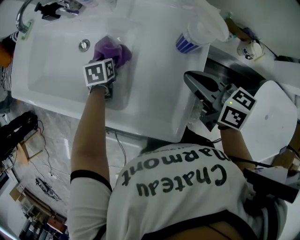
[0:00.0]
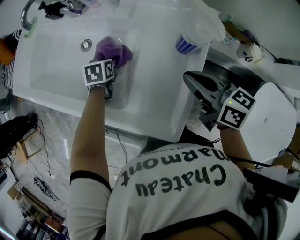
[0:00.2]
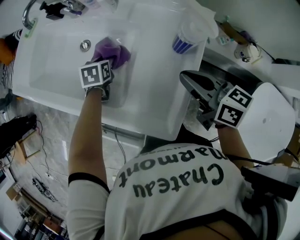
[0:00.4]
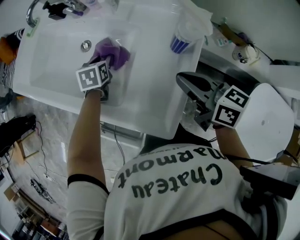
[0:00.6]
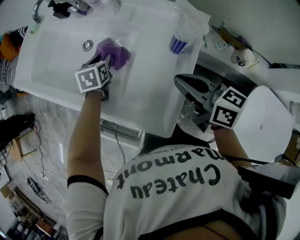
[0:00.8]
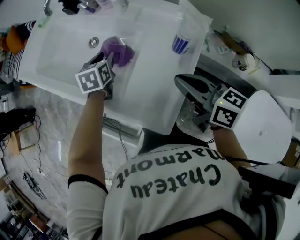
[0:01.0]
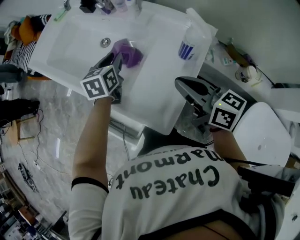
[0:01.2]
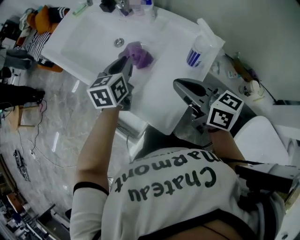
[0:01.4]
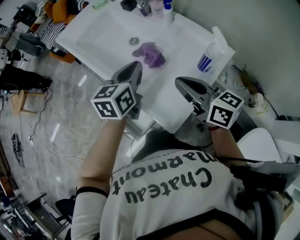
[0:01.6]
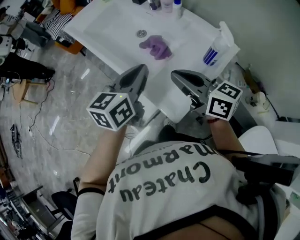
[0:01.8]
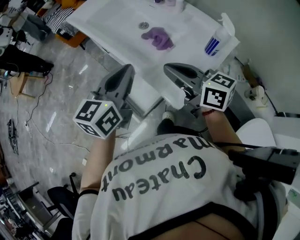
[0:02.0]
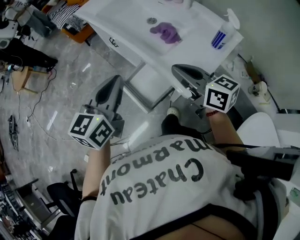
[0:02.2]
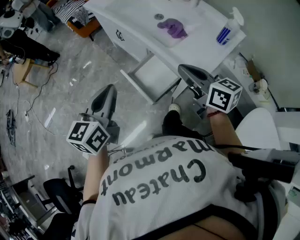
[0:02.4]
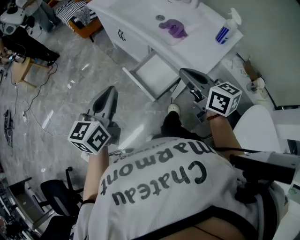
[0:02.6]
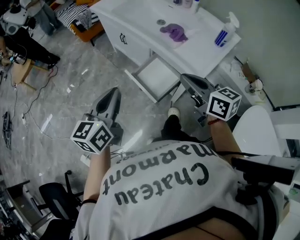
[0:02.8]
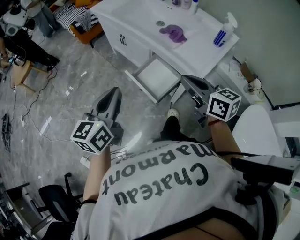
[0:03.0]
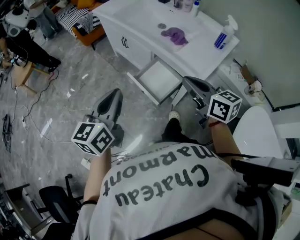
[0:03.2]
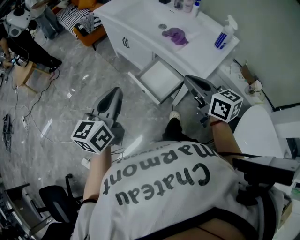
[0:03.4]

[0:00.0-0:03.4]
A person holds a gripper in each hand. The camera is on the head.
0.0 to 1.6 s: The right gripper moves upward and to the left, about 15 cm, and changes its angle by about 30 degrees. The left gripper moves upward and backward, roughly 30 cm, tilts its fingers some 40 degrees upward, and closes its fingers.
1.6 to 3.4 s: The right gripper shifts about 25 cm backward and to the left. The left gripper shifts roughly 40 cm to the left and backward.

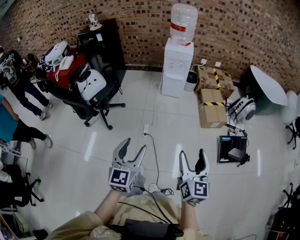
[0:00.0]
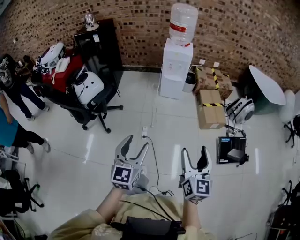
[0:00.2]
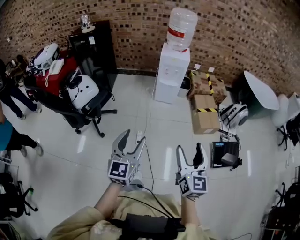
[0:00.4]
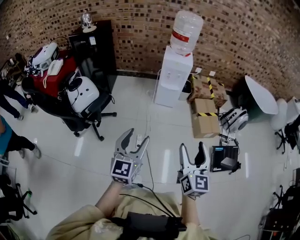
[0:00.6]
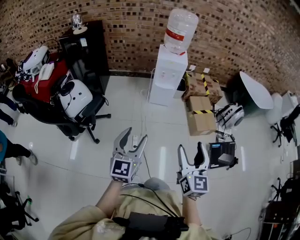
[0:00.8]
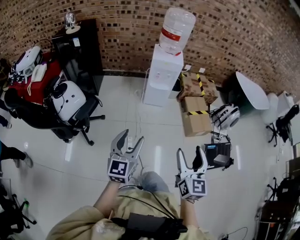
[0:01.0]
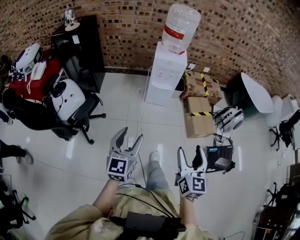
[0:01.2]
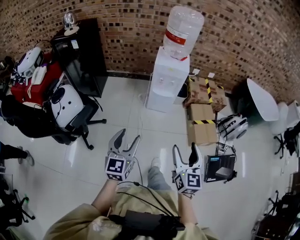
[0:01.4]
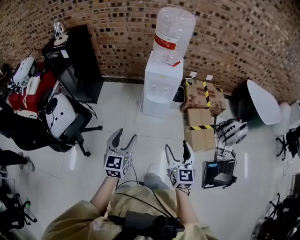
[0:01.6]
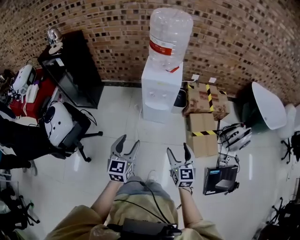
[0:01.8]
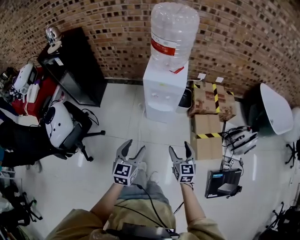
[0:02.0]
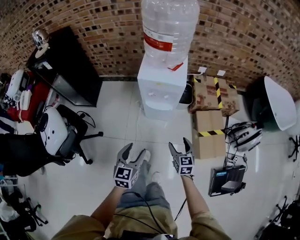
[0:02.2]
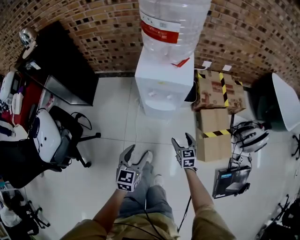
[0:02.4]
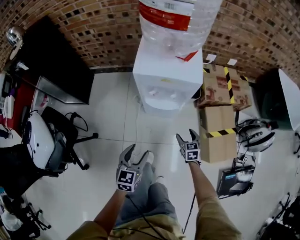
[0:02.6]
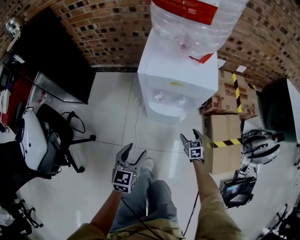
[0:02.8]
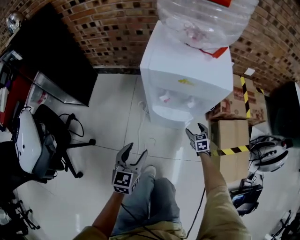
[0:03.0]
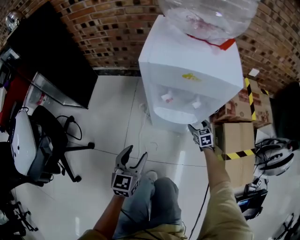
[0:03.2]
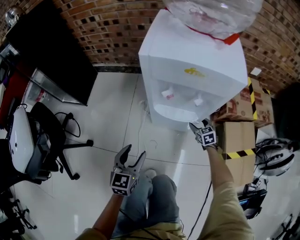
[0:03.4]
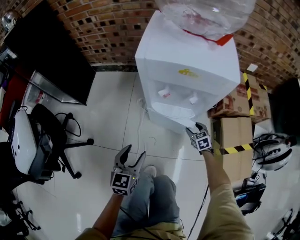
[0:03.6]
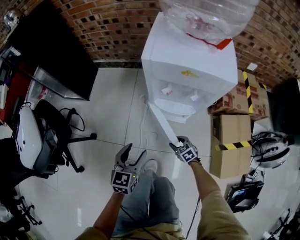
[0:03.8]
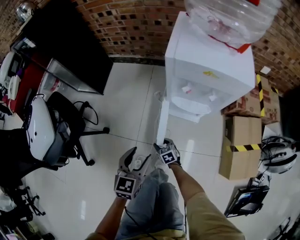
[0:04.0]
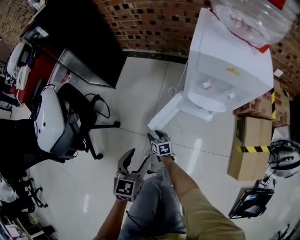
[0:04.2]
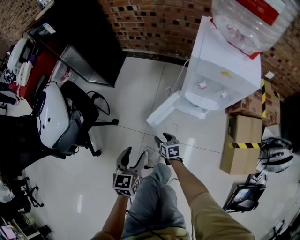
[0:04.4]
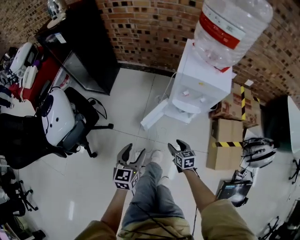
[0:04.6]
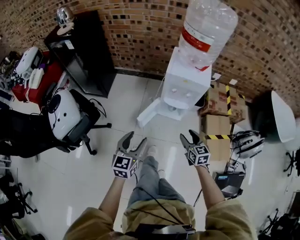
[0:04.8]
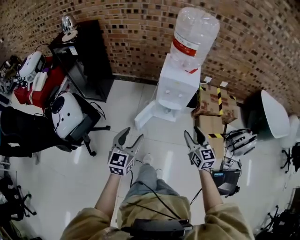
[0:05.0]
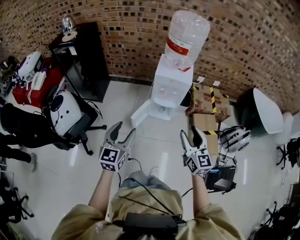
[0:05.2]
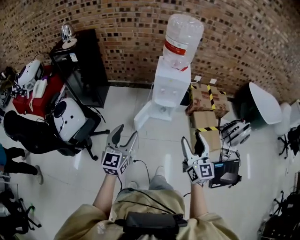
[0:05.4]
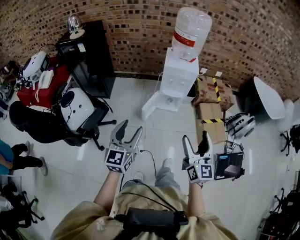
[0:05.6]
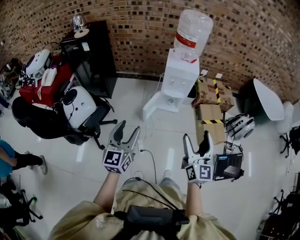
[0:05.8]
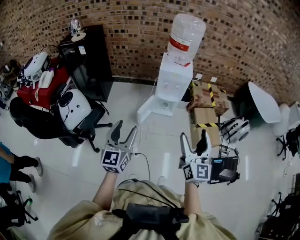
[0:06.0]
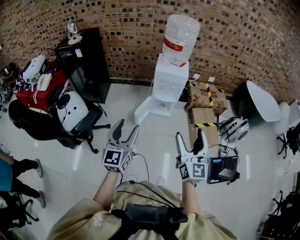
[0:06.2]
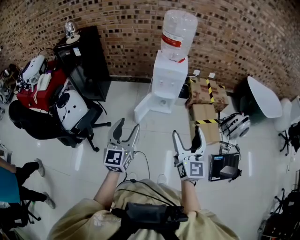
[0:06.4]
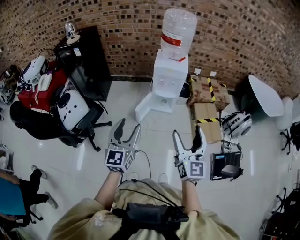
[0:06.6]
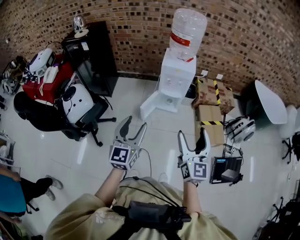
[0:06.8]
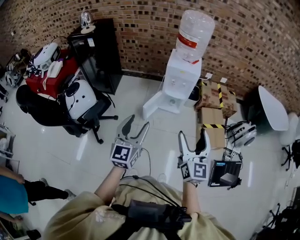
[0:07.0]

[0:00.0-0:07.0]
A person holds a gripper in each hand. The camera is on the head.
0.0 to 1.4 s: Both grippers move forward, approximately 35 cm.
1.4 to 2.8 s: Both grippers travel together downward and forward, about 70 cm. The right gripper tilts its fingers approximately 40 degrees downward.
2.8 to 4.2 s: The right gripper ends up roughly 40 cm from where it was, and changes its angle by about 30 degrees, while the left gripper travels downward and back again, some 10 cm each way.
4.2 to 5.6 s: The left gripper is displaced upward by approximately 50 cm, and changes its angle by about 30 degrees. Meanwhile the right gripper goes some 80 cm upward, points its fingers about 40 degrees further upward, and opens.
5.6 to 7.0 s: The left gripper goes roughly 5 cm to the right.

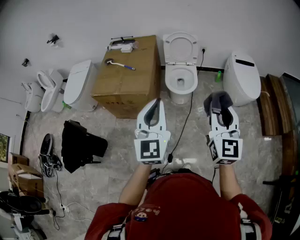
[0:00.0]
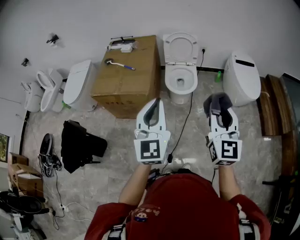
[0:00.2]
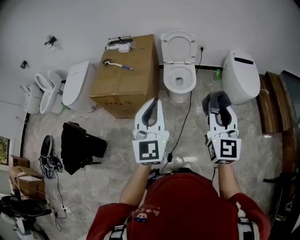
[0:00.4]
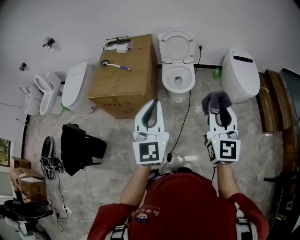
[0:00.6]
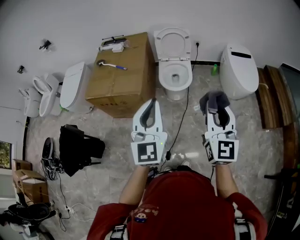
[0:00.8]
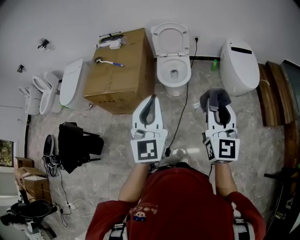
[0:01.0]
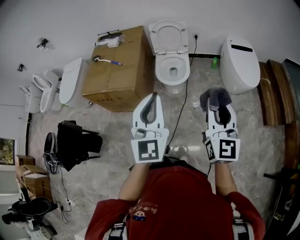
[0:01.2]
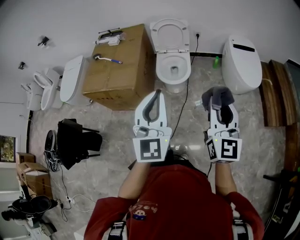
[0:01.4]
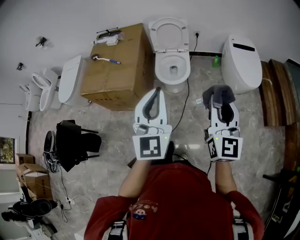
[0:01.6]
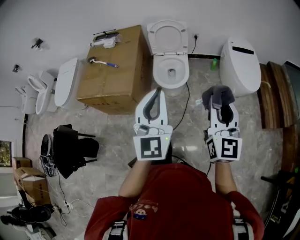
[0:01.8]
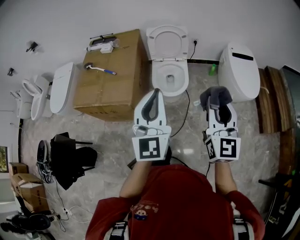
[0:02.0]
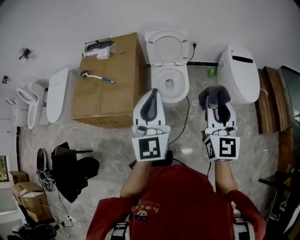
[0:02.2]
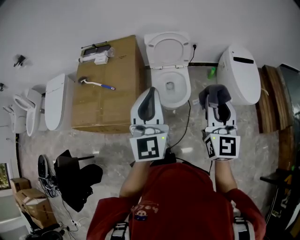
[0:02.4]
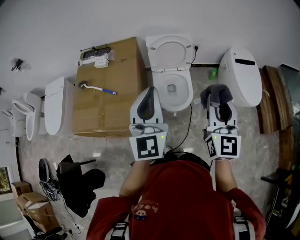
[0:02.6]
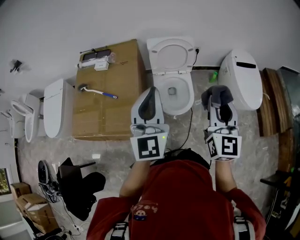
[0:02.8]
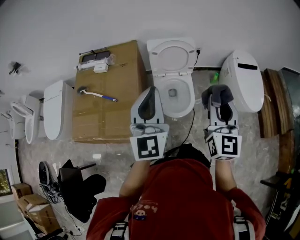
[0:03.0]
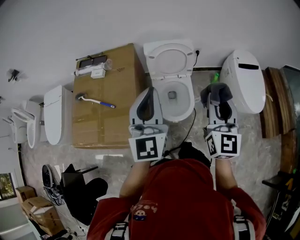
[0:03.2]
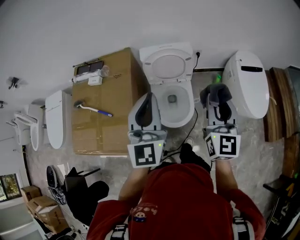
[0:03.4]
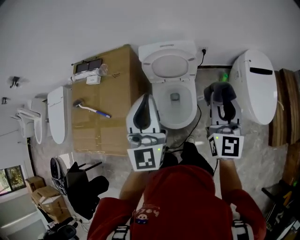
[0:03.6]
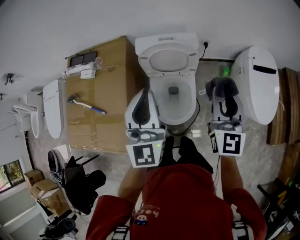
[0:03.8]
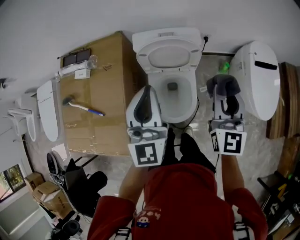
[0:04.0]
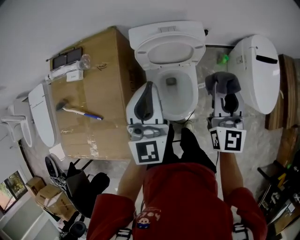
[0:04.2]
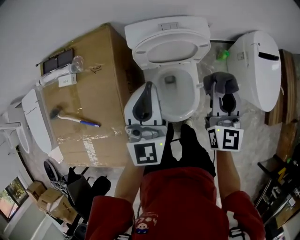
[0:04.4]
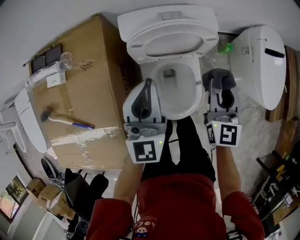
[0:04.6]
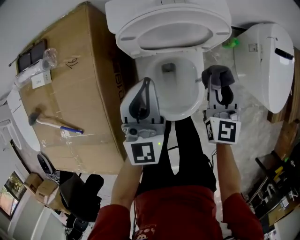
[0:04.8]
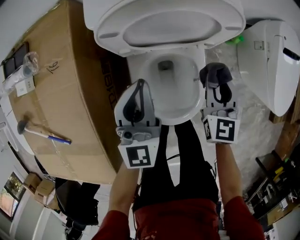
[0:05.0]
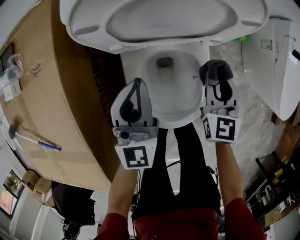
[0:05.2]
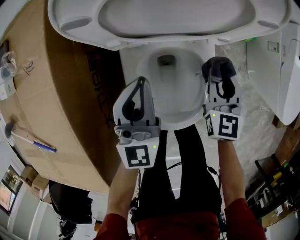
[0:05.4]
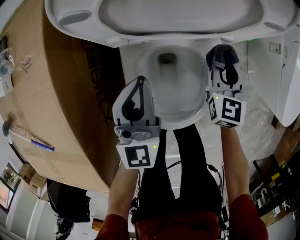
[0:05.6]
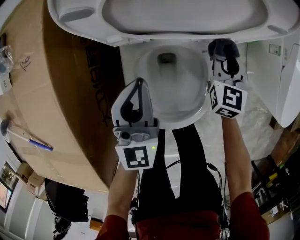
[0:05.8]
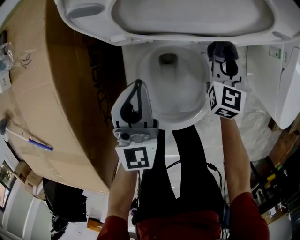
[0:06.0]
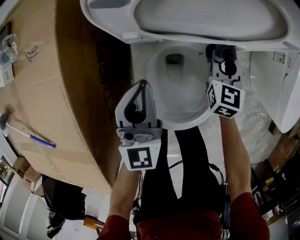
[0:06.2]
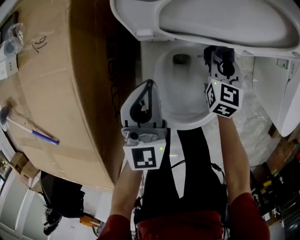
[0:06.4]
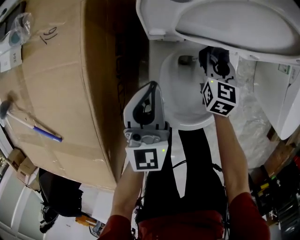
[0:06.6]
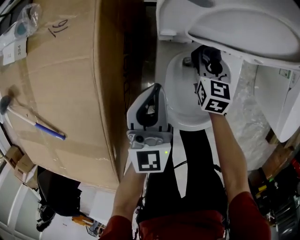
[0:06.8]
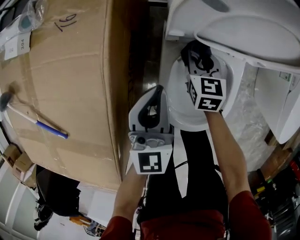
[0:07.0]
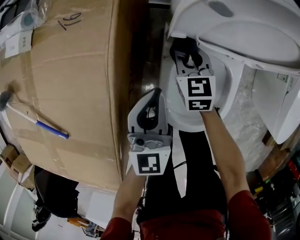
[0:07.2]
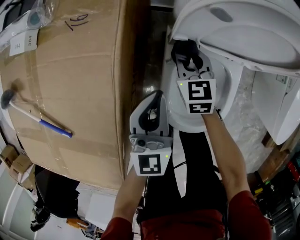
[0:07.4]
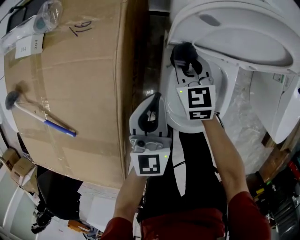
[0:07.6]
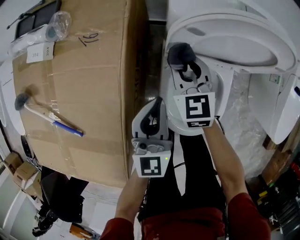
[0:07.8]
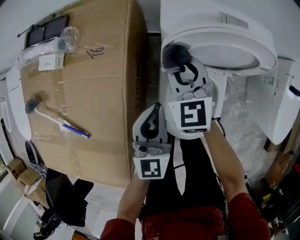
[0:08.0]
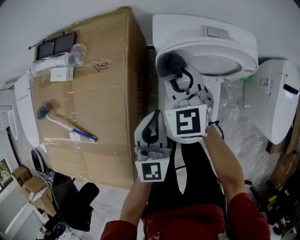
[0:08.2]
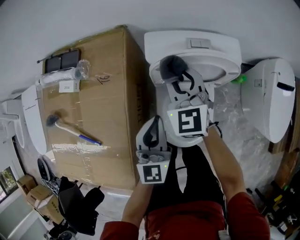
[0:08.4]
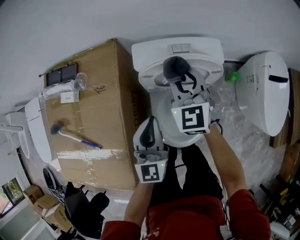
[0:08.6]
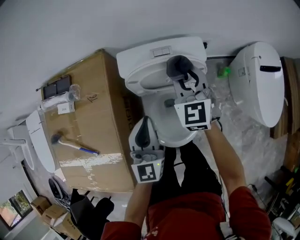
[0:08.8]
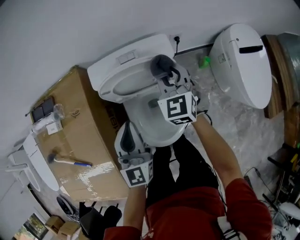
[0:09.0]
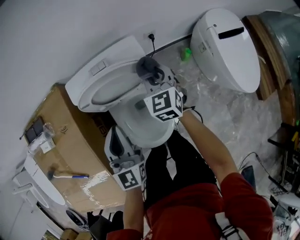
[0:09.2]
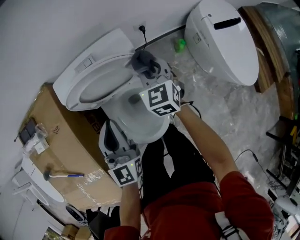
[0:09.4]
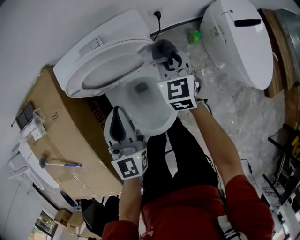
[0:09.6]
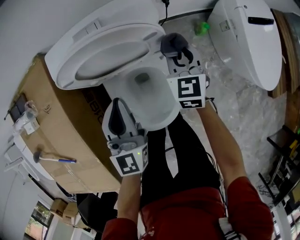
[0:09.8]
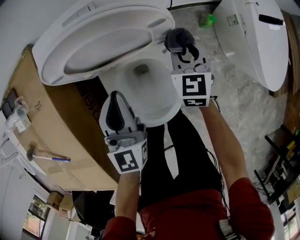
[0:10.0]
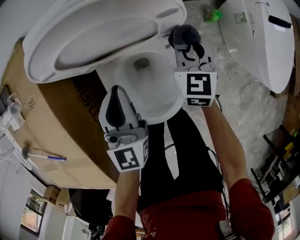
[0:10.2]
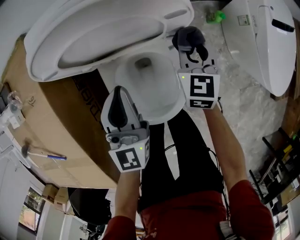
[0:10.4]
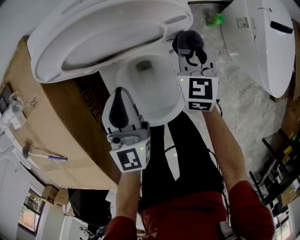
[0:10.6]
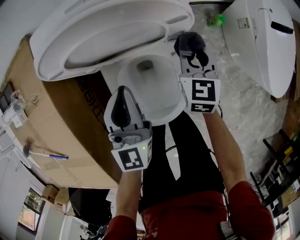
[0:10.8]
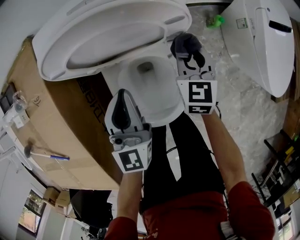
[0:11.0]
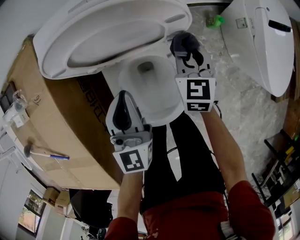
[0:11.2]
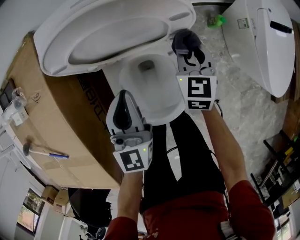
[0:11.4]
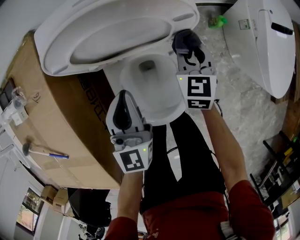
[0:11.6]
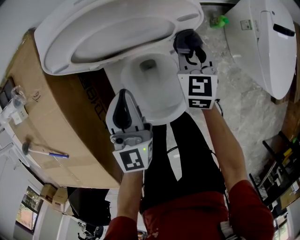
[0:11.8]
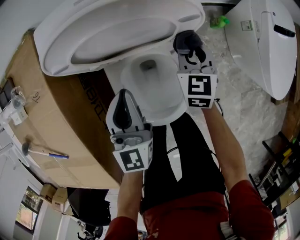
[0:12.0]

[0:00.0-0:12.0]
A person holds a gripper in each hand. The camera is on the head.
0.0 to 1.6 s: The grippers both shift to the right and forward by roughly 15 cm.
1.6 to 3.0 s: The two grippers go approximately 35 cm forward and to the left.
3.0 to 4.4 s: The two grippers go roughly 35 cm forward and downward.
4.4 to 6.0 s: Both grippers travel together downward, about 35 cm. The right gripper swivels about 20 degrees.
6.0 to 7.6 s: The left gripper is displaced to the left by approximately 10 cm. The right gripper goes roughly 25 cm to the left, and changes its angle by roughly 30 degrees.
7.6 to 9.0 s: The two grippers go some 30 cm upward and to the right. The right gripper changes its angle by roughly 30 degrees.
9.0 to 10.4 s: Both grippers travel together downward, roughly 20 cm. The right gripper turns by some 20 degrees.
10.4 to 12.0 s: The grippers move only a little.

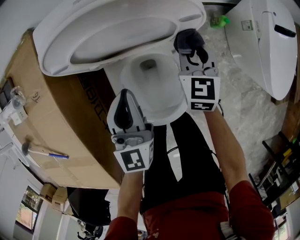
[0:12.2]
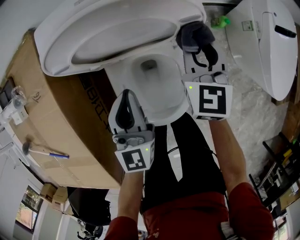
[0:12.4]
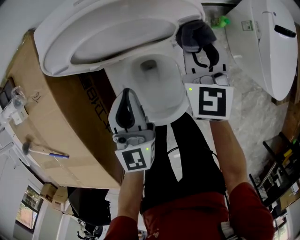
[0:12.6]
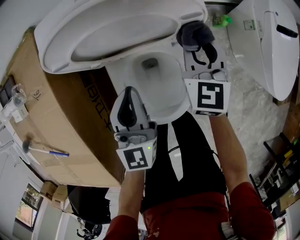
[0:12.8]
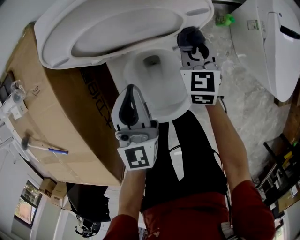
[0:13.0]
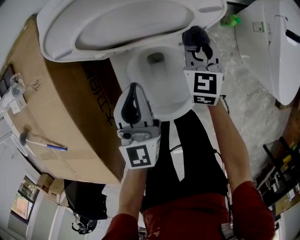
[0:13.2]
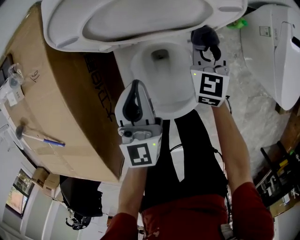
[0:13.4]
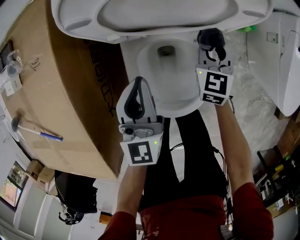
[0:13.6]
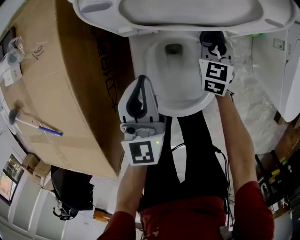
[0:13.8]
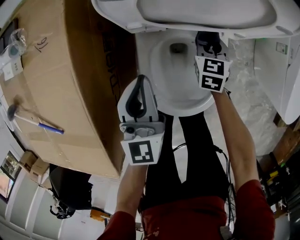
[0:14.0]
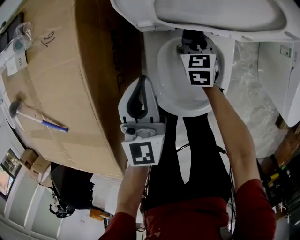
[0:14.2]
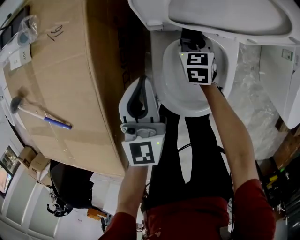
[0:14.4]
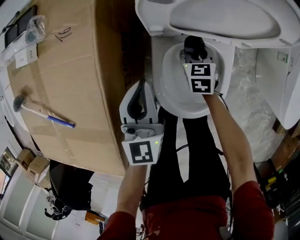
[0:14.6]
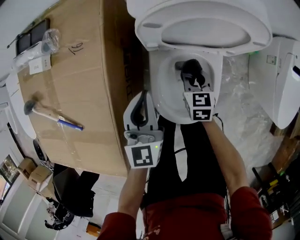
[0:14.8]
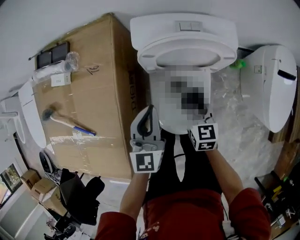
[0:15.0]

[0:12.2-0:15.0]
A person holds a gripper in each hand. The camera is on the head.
12.2 to 13.6 s: The left gripper ends up approximately 5 cm from where it was. The right gripper goes approximately 5 cm downward.
13.6 to 15.0 s: The left gripper shifts about 15 cm upward and to the left. Meanwhile the right gripper is displaced upward, to the left and backward by some 20 cm, and turns by some 20 degrees.
